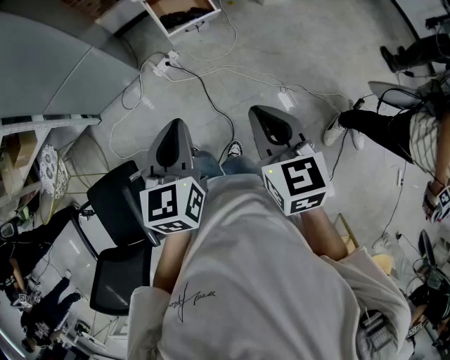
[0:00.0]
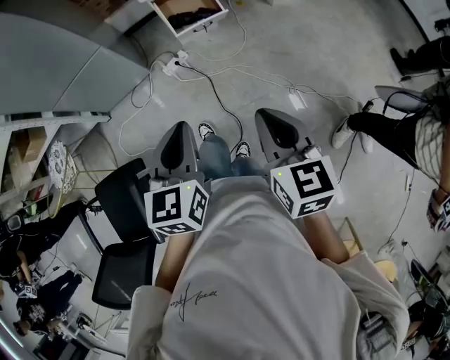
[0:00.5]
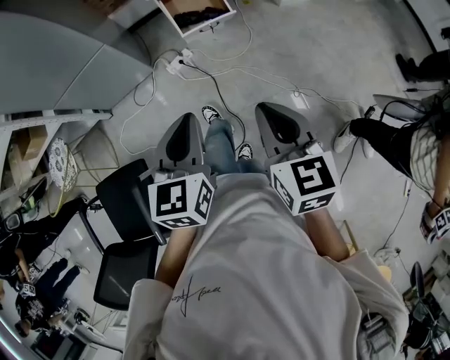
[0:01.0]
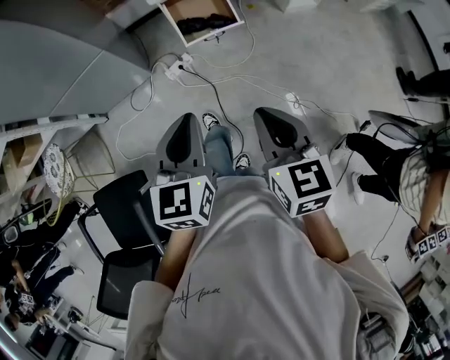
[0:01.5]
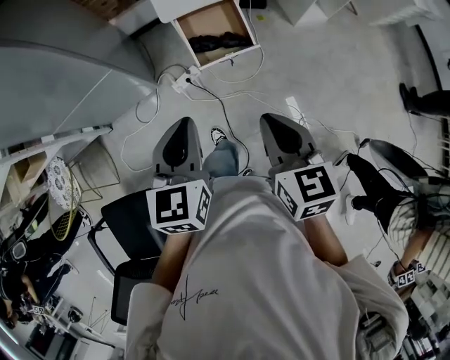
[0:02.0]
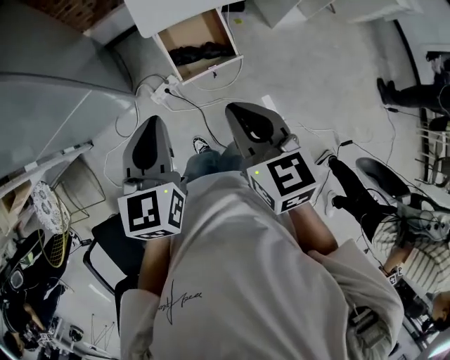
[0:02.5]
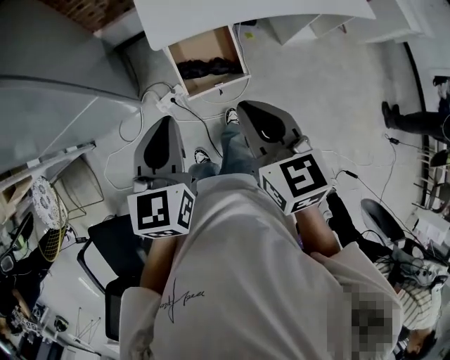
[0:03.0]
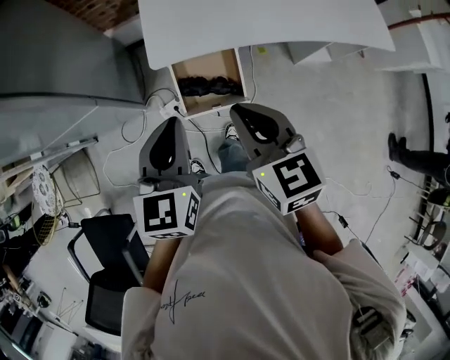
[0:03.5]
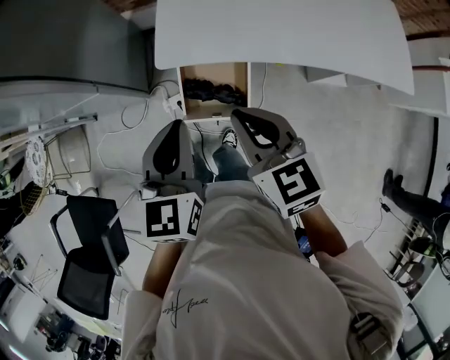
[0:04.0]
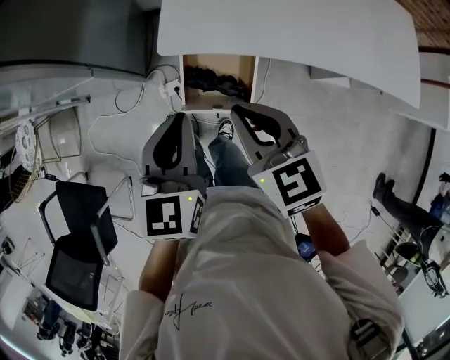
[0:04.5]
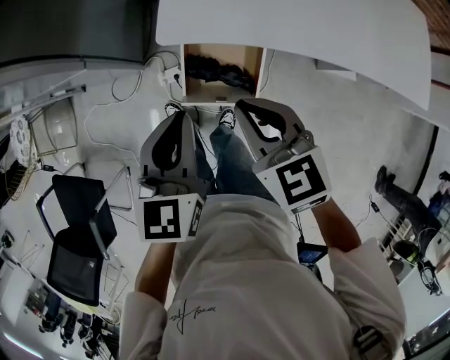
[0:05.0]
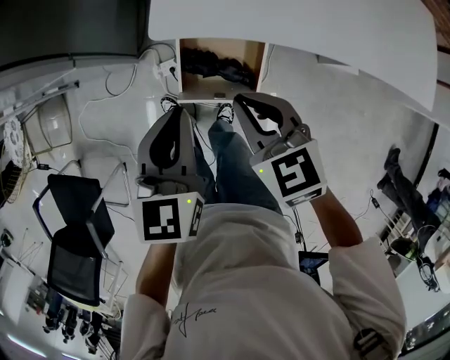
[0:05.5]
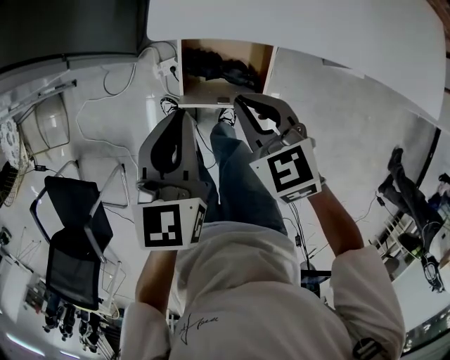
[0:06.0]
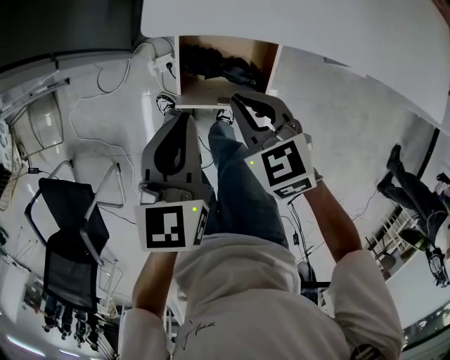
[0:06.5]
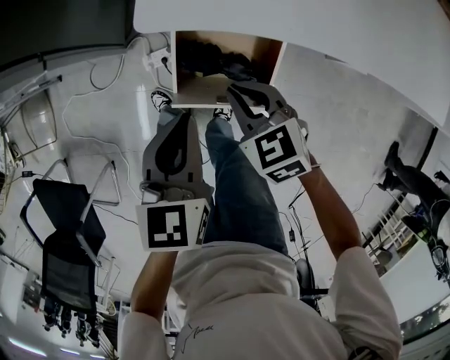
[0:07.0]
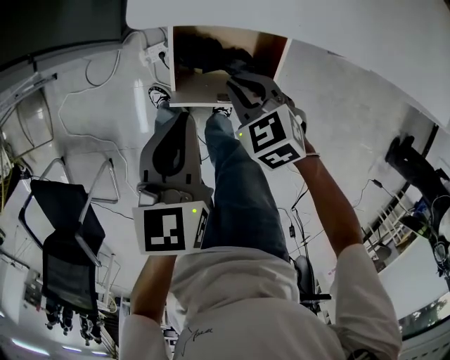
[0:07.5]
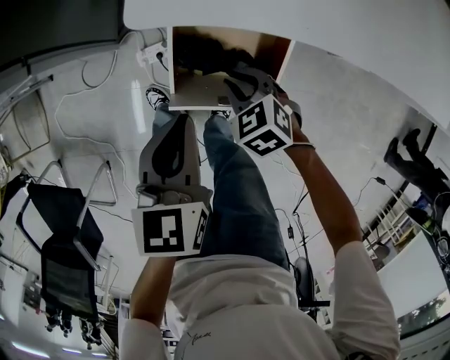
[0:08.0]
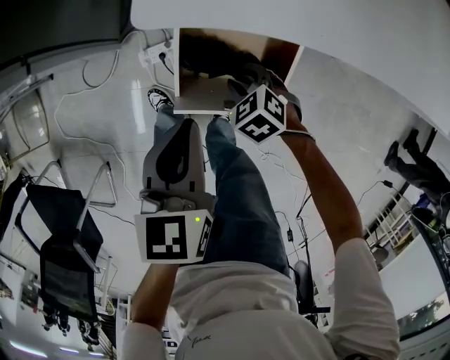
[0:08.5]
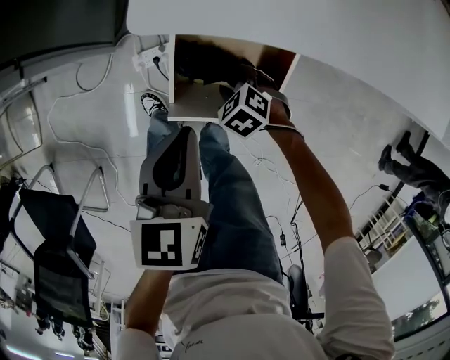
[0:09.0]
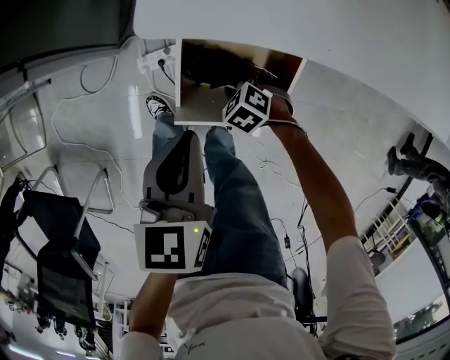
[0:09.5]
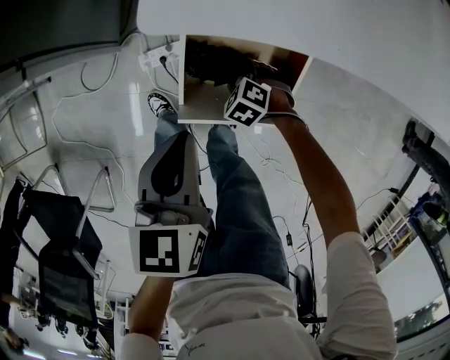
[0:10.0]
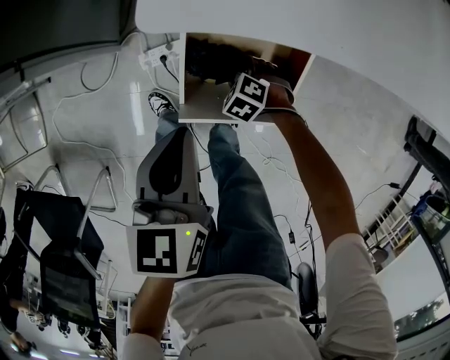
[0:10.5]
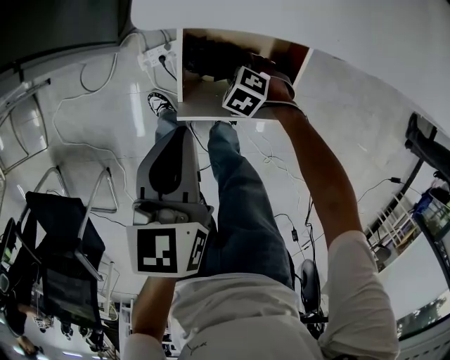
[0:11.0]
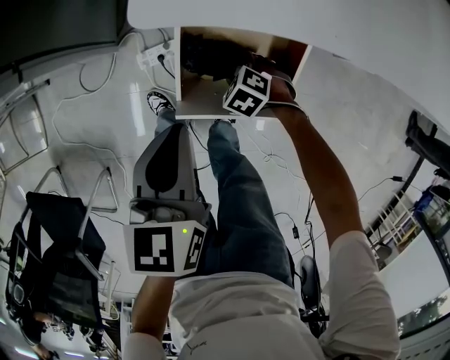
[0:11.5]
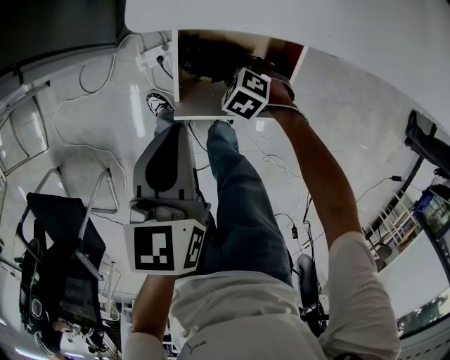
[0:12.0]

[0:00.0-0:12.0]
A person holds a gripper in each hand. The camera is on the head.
0:00.0 to 0:02.0: Both grippers move forward, about 25 cm.
0:02.0 to 0:04.0: The left gripper moves roughly 30 cm, while the right gripper shifts by approximately 30 cm, and swivels approximately 30 degrees.
0:04.0 to 0:06.0: Both grippers travel together downward, some 15 cm.
0:06.0 to 0:08.0: The right gripper travels downward by approximately 20 cm, and changes its angle by roughly 20 degrees, while the left gripper is displaced downward by approximately 15 cm.
0:08.0 to 0:10.0: The right gripper is displaced downward by roughly 15 cm, turns by approximately 20 degrees, and opens its fingers.
0:10.0 to 0:12.0: The grippers stay close to where they were, moving slightly.

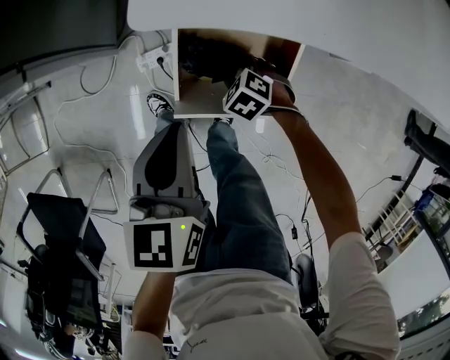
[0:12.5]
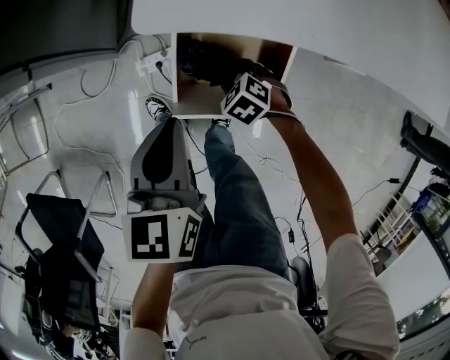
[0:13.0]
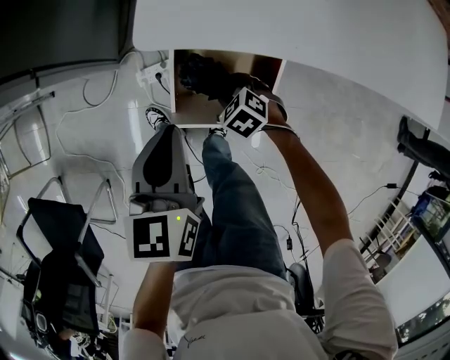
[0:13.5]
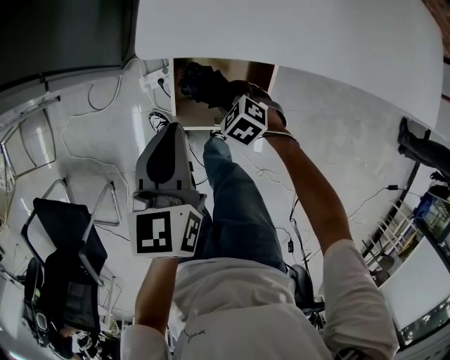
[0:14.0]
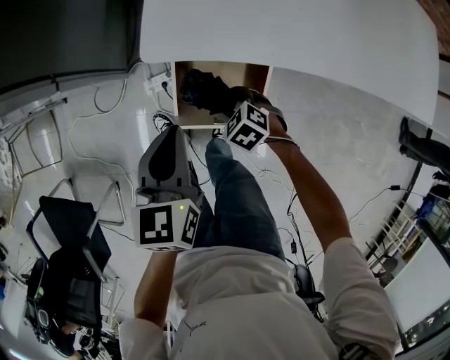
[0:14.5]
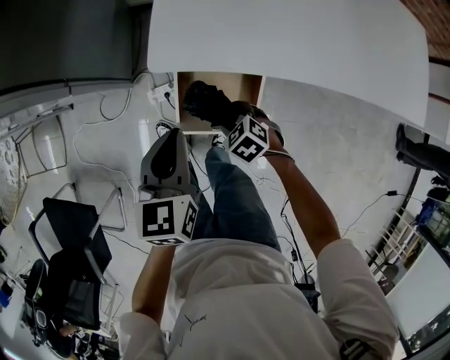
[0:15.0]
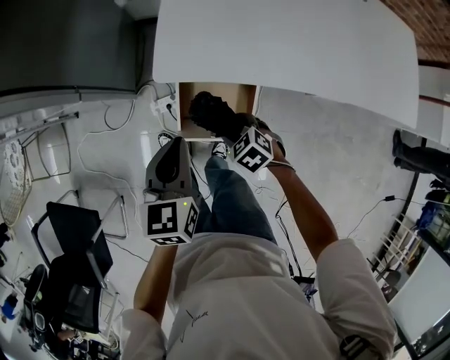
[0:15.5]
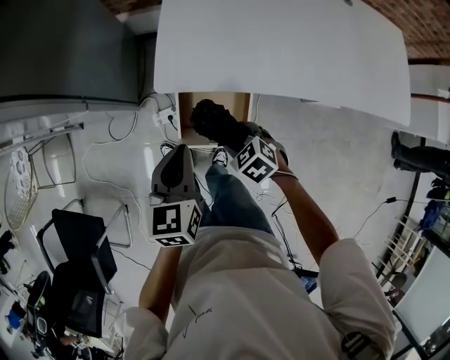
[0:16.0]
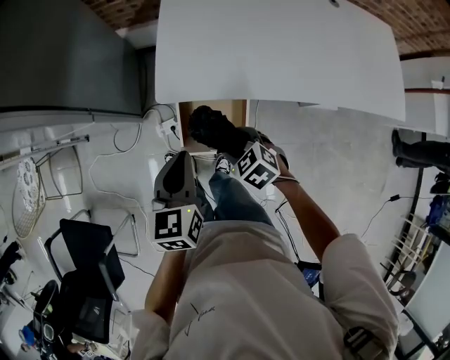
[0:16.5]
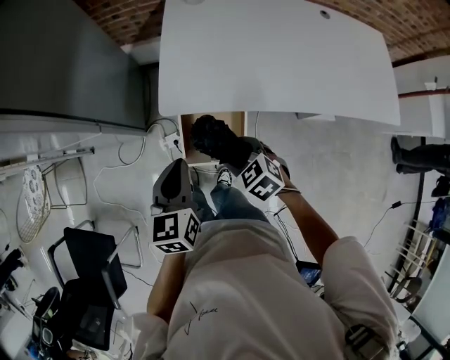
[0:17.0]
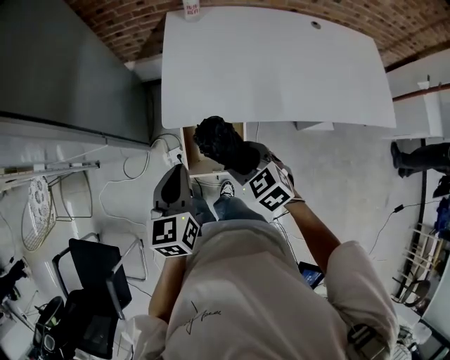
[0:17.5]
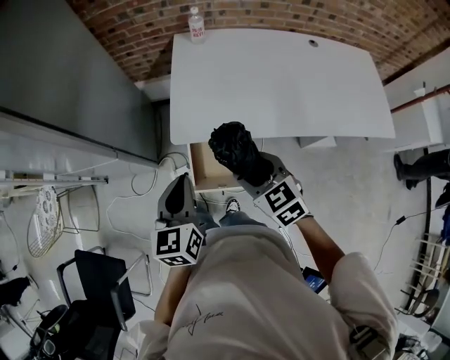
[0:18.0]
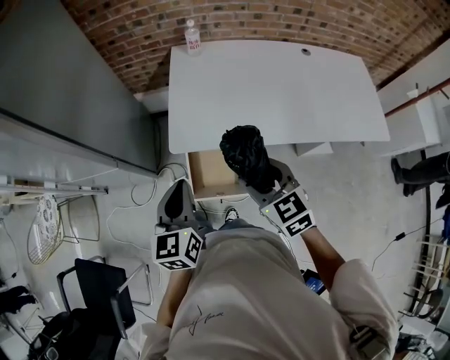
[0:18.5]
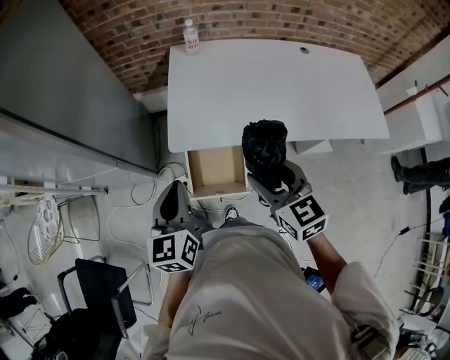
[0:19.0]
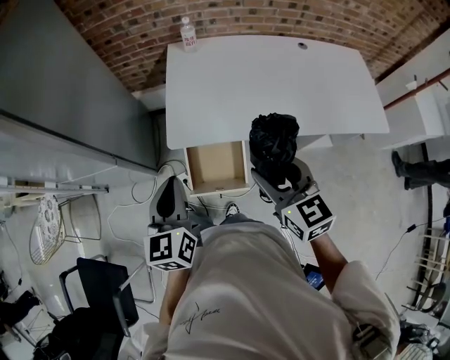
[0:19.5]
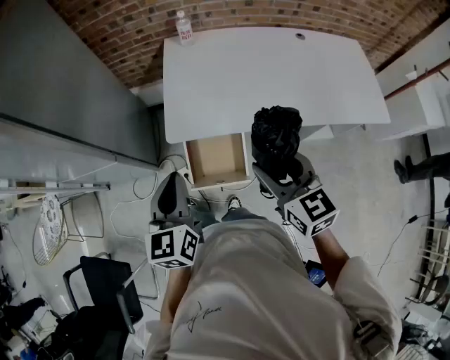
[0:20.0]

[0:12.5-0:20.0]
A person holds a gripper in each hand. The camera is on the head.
0:12.5 to 0:14.5: The right gripper moves upward, about 10 cm; the left gripper moves upward, some 5 cm.
0:14.5 to 0:16.5: The left gripper heads upward, covering approximately 10 cm. Meanwhile the right gripper heads upward, covering approximately 20 cm.
0:16.5 to 0:18.0: The left gripper goes about 10 cm upward. Meanwhile the right gripper shifts some 20 cm upward, and changes its angle by approximately 20 degrees.
0:18.0 to 0:20.0: The right gripper shifts about 10 cm upward and to the right, and swivels approximately 20 degrees.

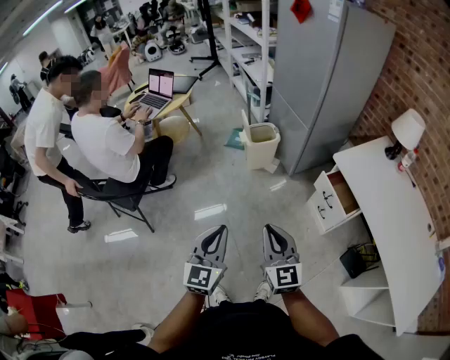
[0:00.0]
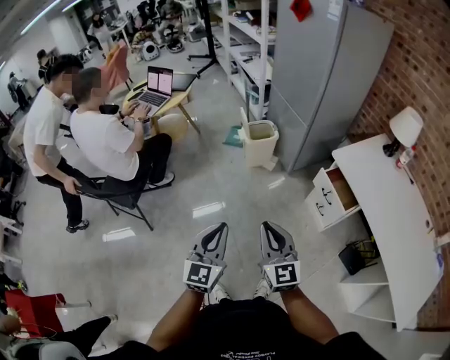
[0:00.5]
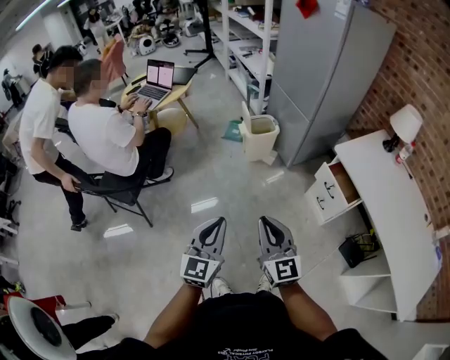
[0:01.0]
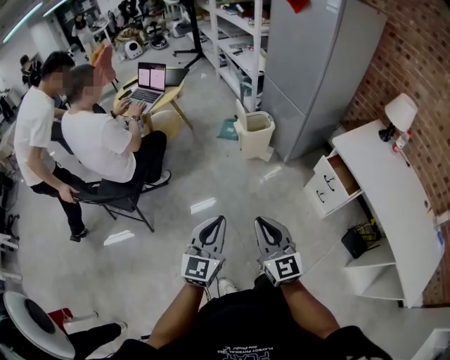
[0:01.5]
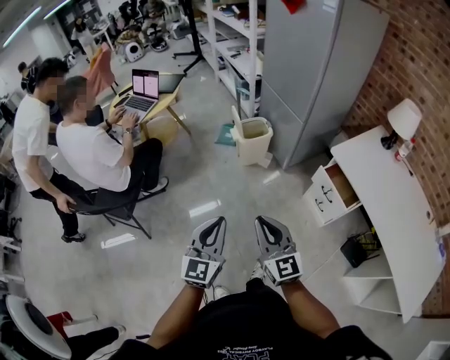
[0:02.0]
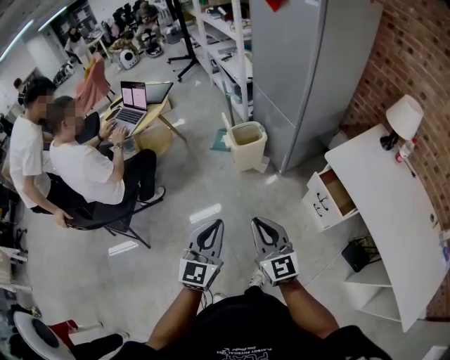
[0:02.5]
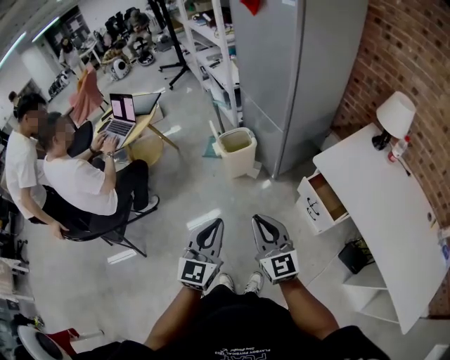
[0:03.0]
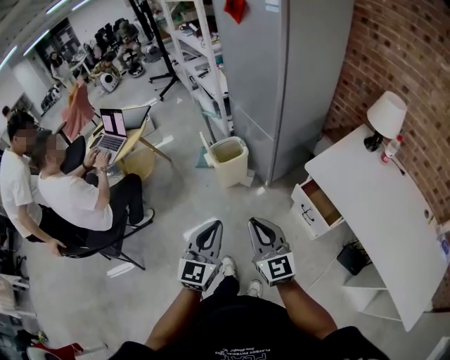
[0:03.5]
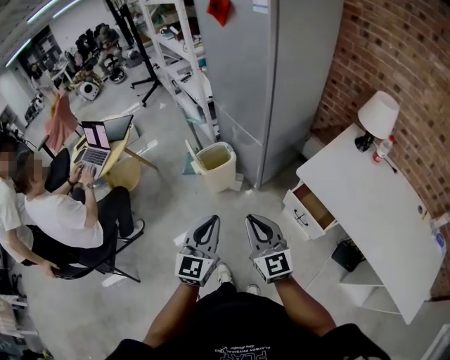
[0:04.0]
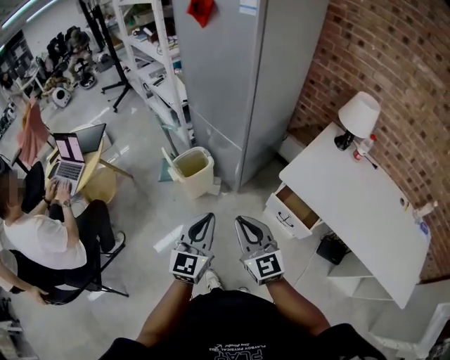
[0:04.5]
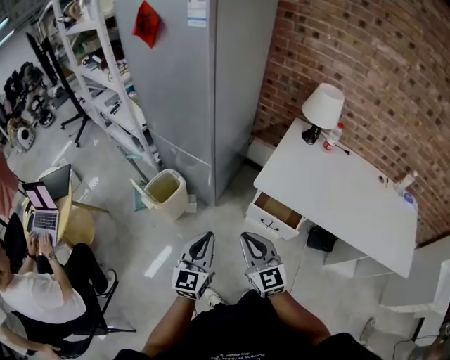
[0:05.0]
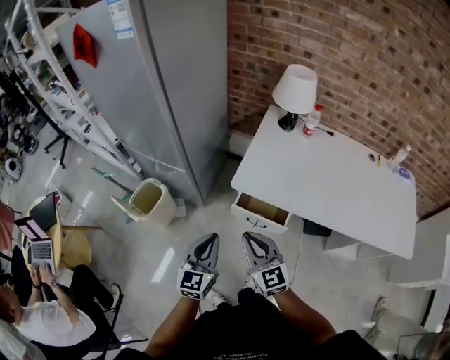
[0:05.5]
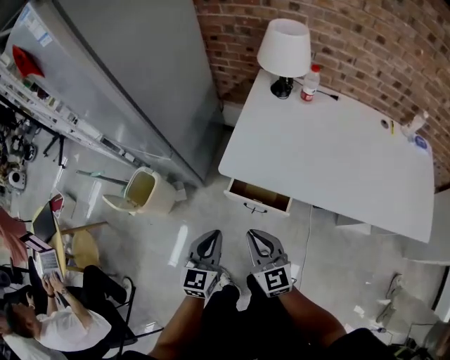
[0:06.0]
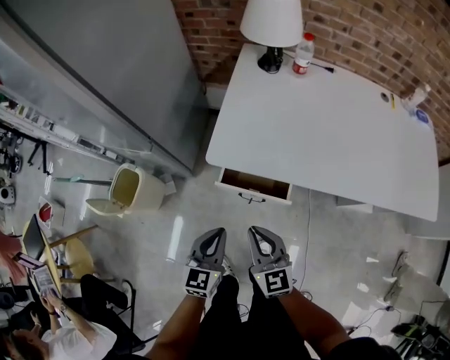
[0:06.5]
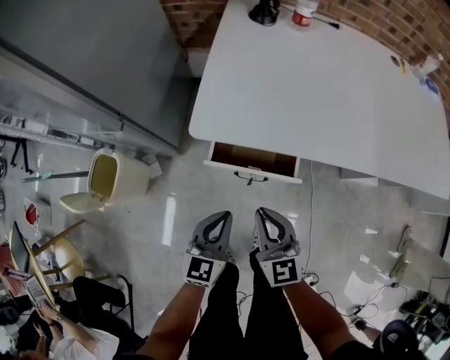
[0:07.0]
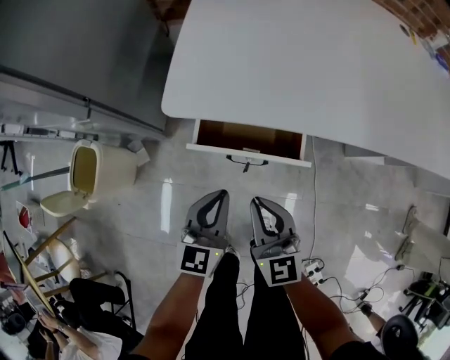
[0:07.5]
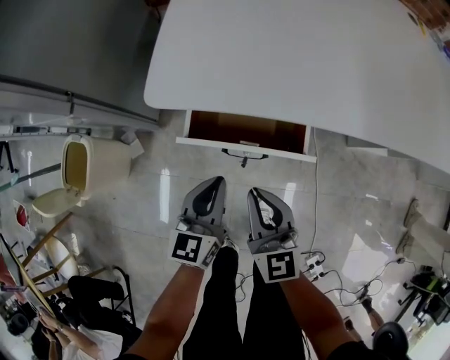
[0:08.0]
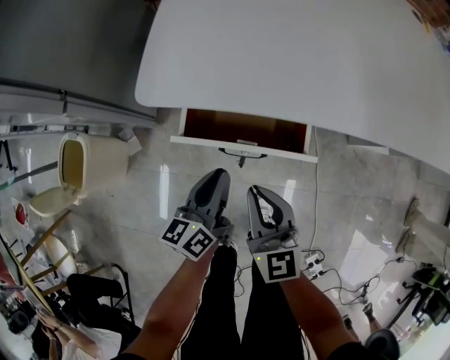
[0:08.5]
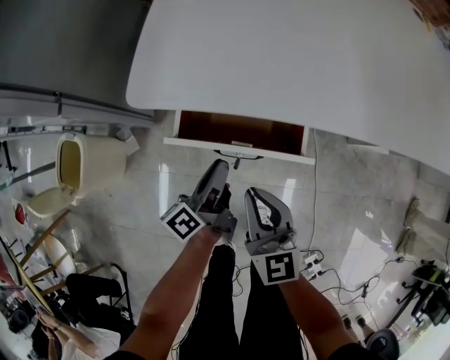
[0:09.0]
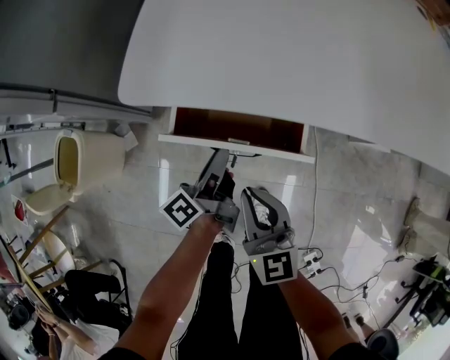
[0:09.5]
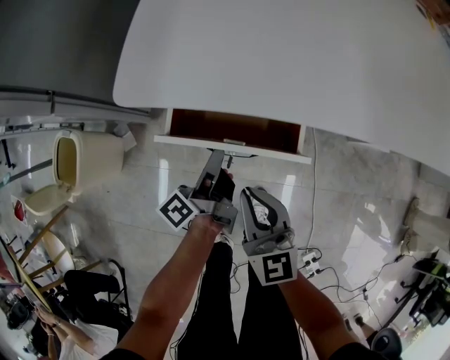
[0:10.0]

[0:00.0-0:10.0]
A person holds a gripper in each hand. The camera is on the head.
0:00.0 to 0:02.0: The two grippers go some 5 cm forward. The left gripper moves approximately 10 cm to the left and comes back.
0:02.0 to 0:04.0: Both grippers travel together forward and to the right, about 25 cm.
0:04.0 to 0:06.0: The left gripper ends up some 30 cm from where it was, and changes its angle by about 40 degrees, while the right gripper changes place by about 25 cm, and swivels some 40 degrees.
0:06.0 to 0:08.0: Both grippers move downward, roughly 25 cm. The right gripper changes its angle by some 20 degrees.
0:08.0 to 0:10.0: The left gripper shifts approximately 10 cm downward and forward, twists about 70 degrees counterclockwise, seen from behind, and opens, then closes once more.
